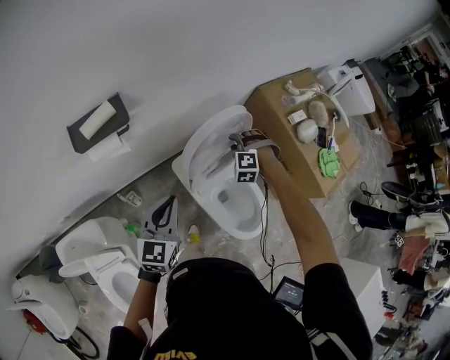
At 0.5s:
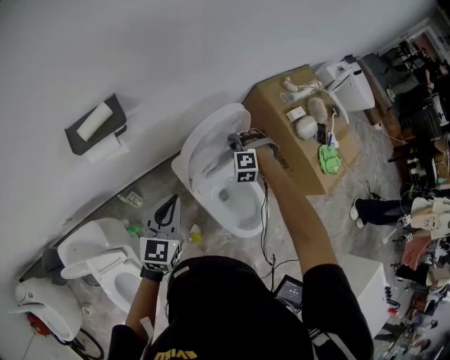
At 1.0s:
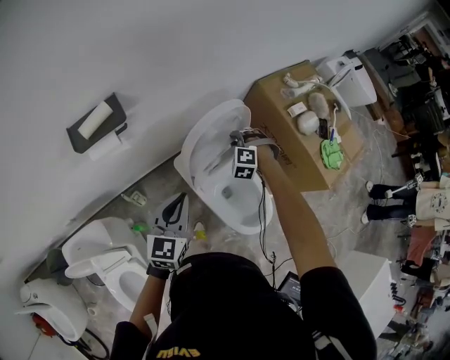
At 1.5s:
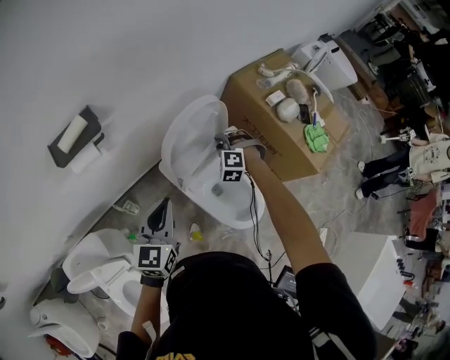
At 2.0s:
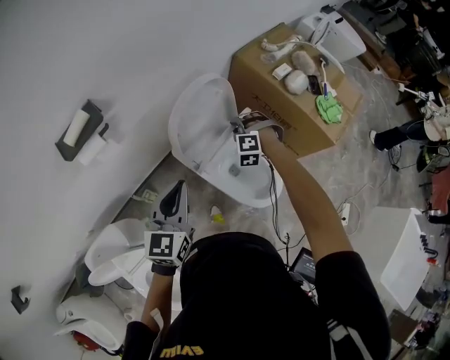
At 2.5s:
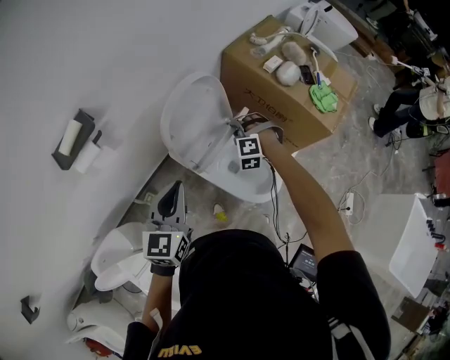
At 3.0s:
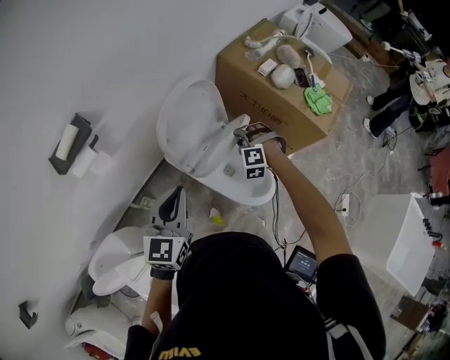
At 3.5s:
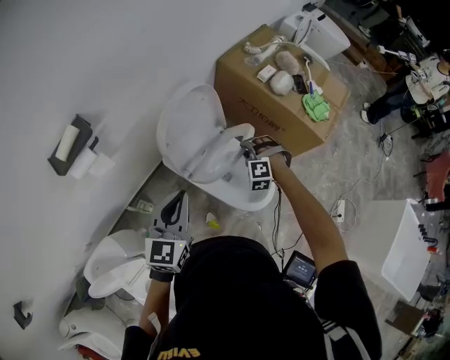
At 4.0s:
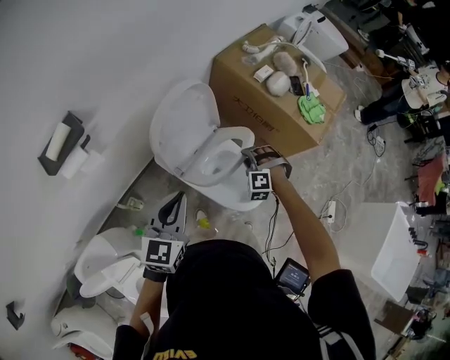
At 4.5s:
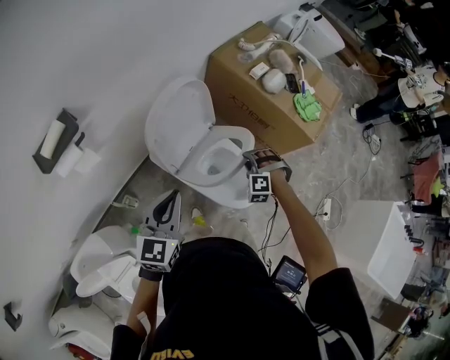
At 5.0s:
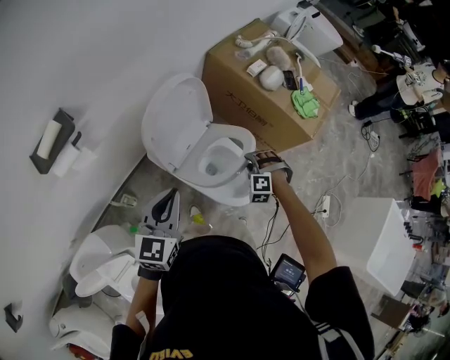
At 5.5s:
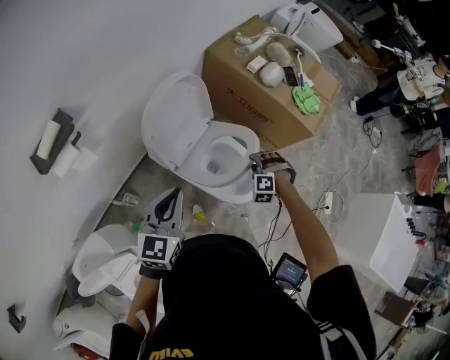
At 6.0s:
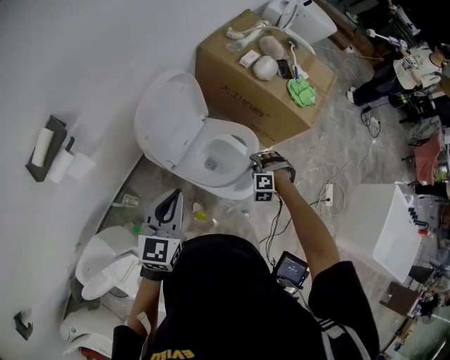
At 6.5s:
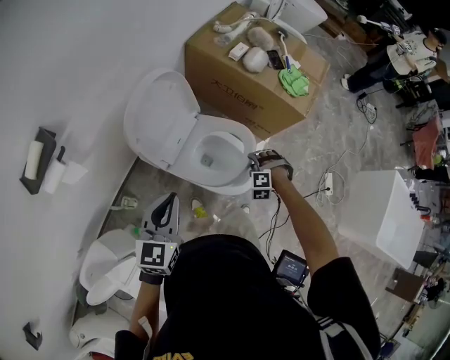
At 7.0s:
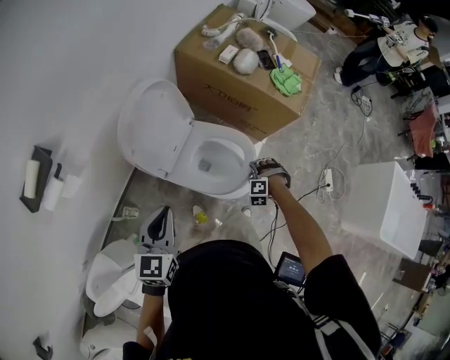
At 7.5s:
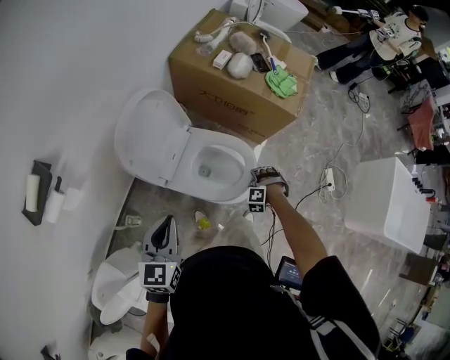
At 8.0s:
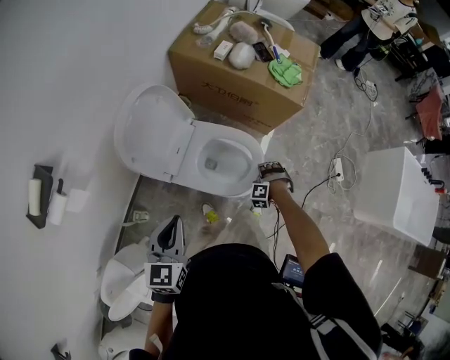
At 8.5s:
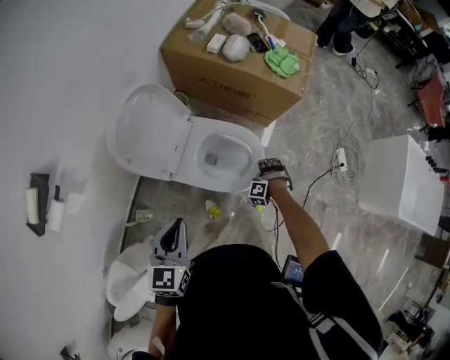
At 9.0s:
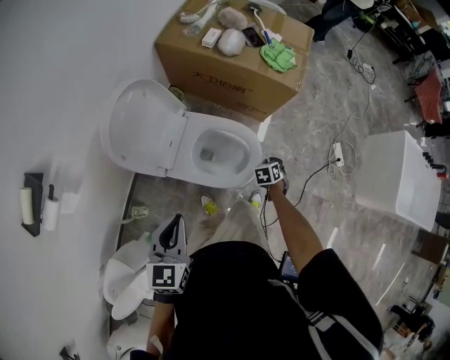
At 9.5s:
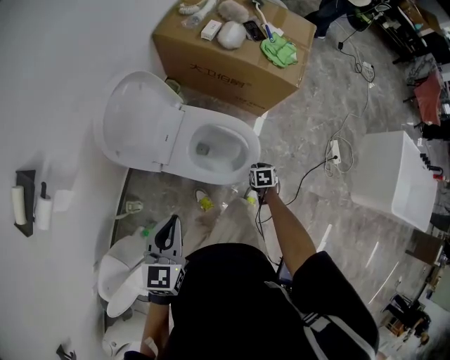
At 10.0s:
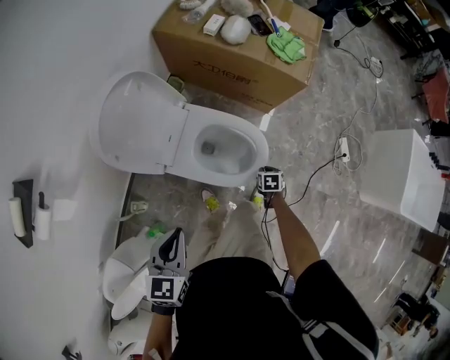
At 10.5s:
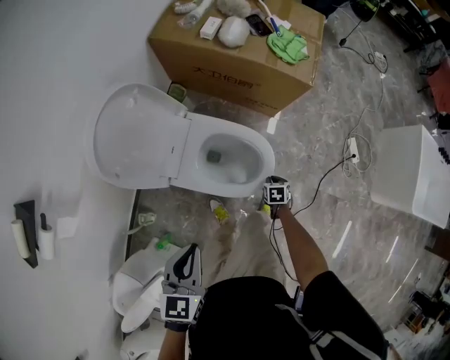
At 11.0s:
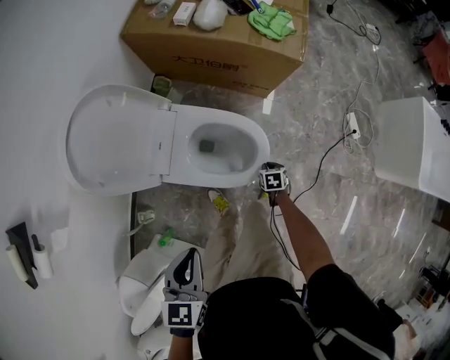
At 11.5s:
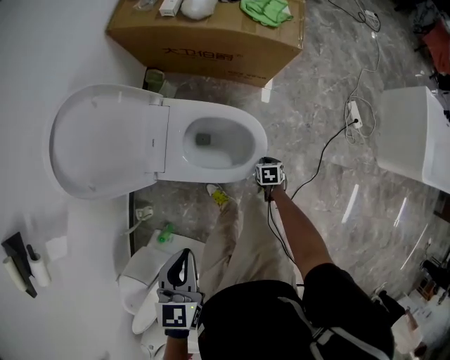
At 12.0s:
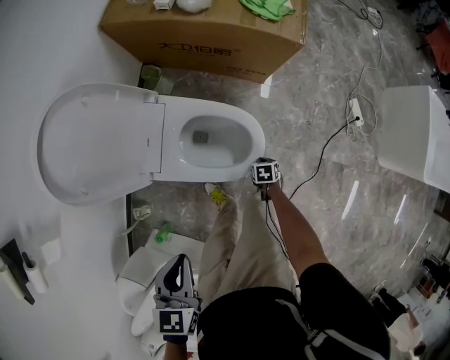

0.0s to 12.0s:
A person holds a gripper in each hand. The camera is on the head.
0.0s to 2.0s: The right gripper travels to the right and backward by about 10 cm. The left gripper travels to the right by some 5 cm.
2.0s to 4.0s: The right gripper moves to the right and backward, some 15 cm.
4.0s to 6.0s: The right gripper heads to the right and downward, covering some 10 cm.
6.0s to 8.0s: The right gripper is displaced downward and to the right by some 15 cm.
8.0s to 10.0s: The right gripper shifts some 10 cm downward and to the right, and twists roughly 100 degrees clockwise, seen from behind; the left gripper shifts by about 5 cm.
10.0s to 12.0s: The right gripper heads downward, covering about 15 cm, while the left gripper heads downward, covering some 5 cm.

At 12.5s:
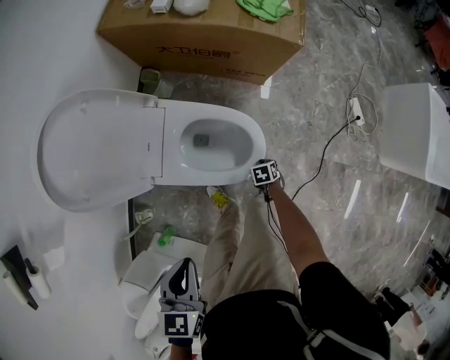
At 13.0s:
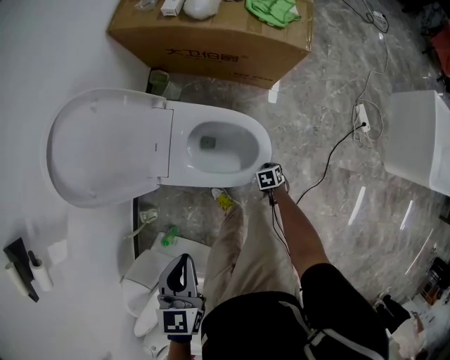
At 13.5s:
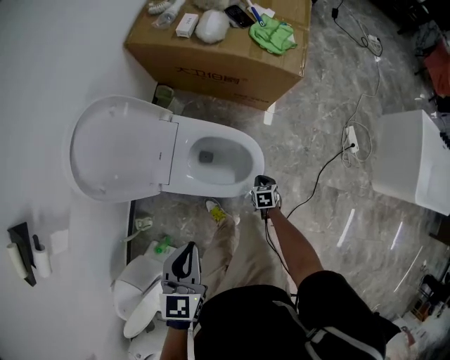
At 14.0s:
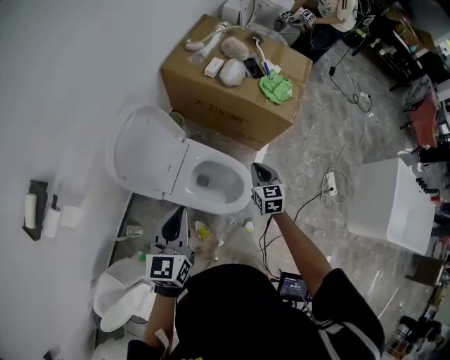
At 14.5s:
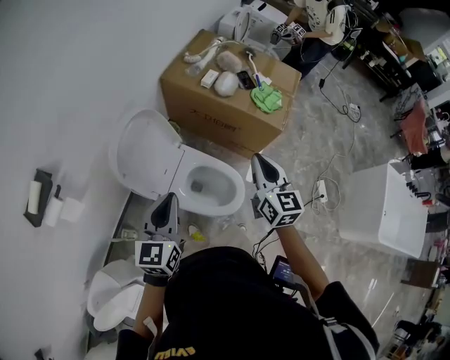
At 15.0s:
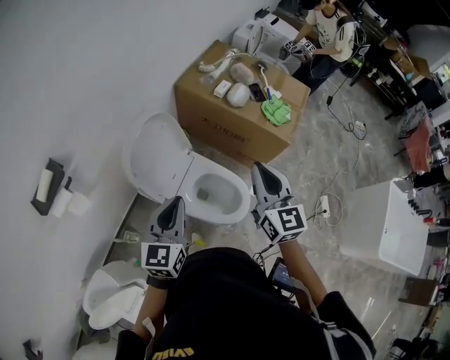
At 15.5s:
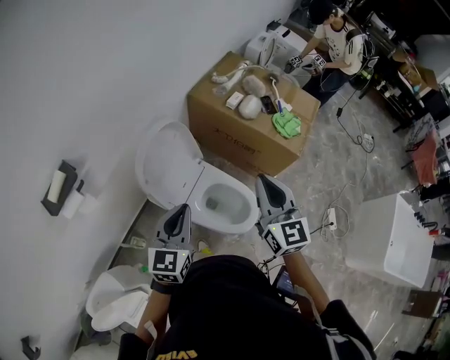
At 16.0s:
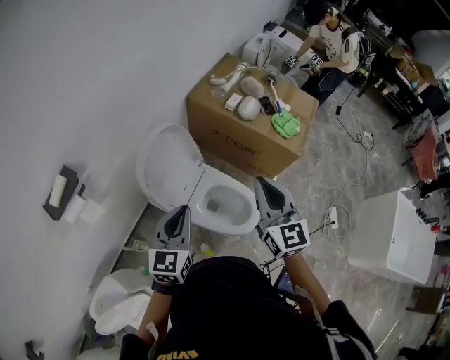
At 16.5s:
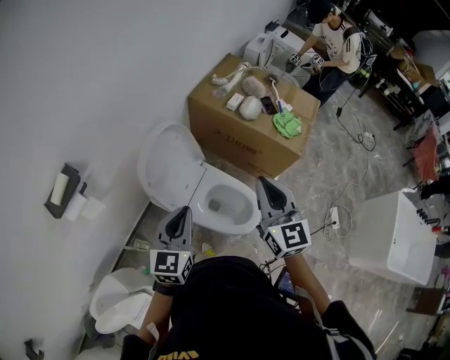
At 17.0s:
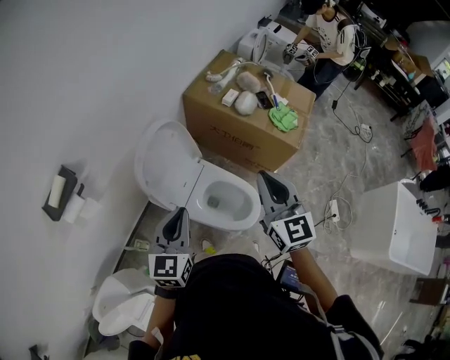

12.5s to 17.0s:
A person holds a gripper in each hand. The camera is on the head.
12.5s to 14.5s: The right gripper goes about 60 cm upward, and angles its fingers upward, by approximately 70 degrees. The left gripper heads upward, covering approximately 20 cm, and tilts its fingers approximately 30 degrees upward.
14.5s to 17.0s: The right gripper moves to the left and upward, approximately 10 cm.

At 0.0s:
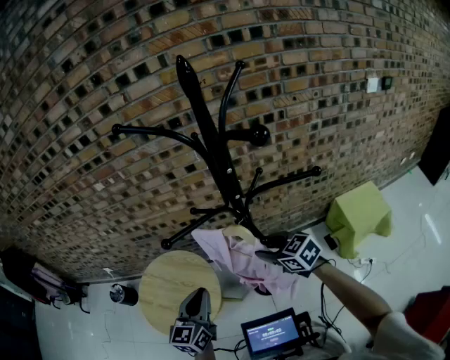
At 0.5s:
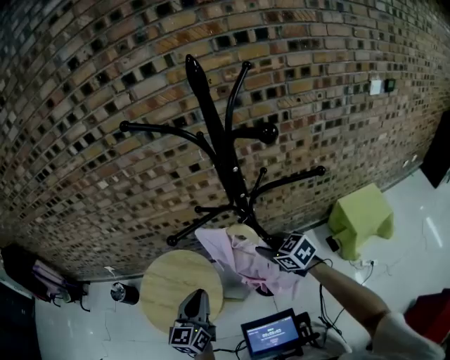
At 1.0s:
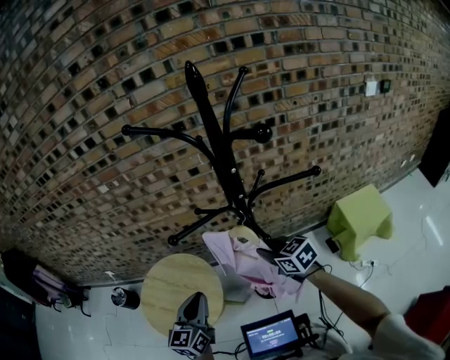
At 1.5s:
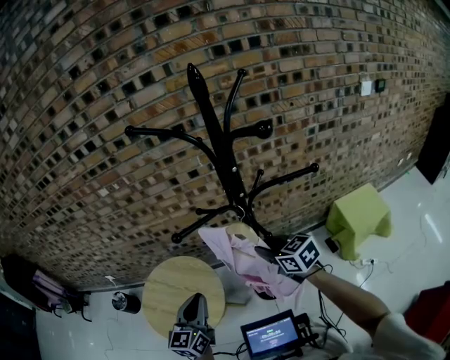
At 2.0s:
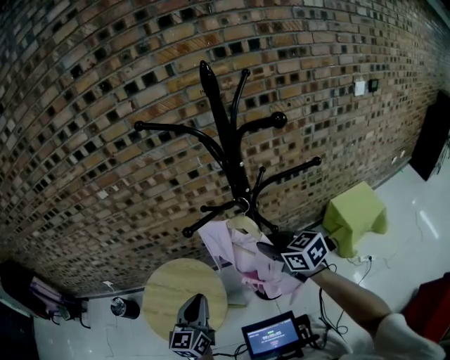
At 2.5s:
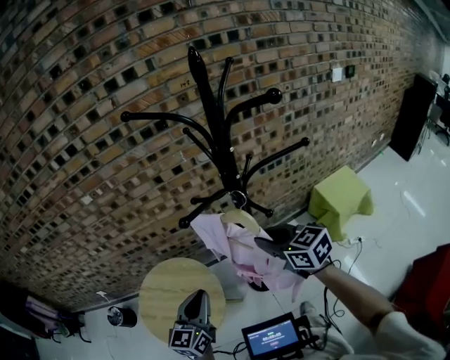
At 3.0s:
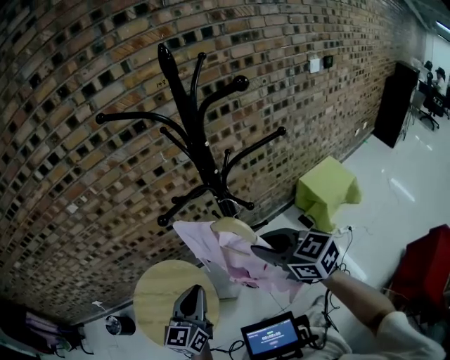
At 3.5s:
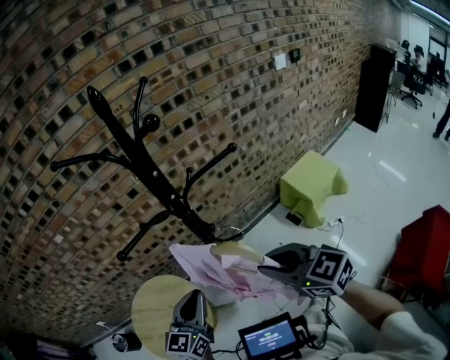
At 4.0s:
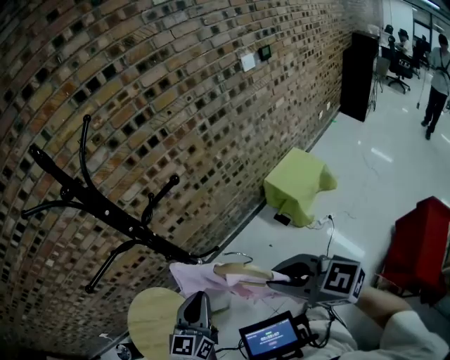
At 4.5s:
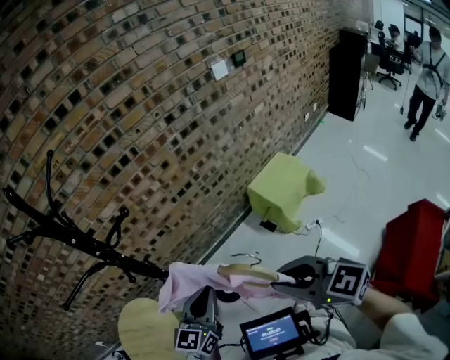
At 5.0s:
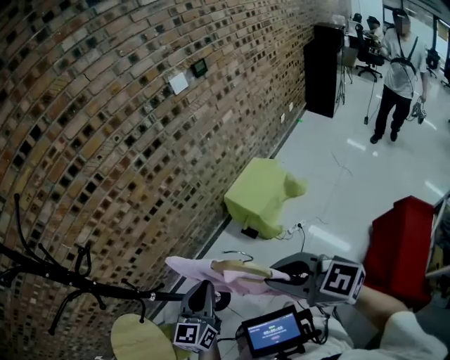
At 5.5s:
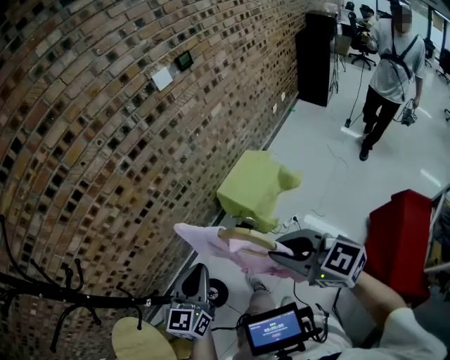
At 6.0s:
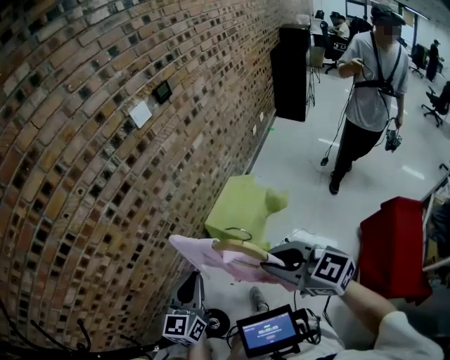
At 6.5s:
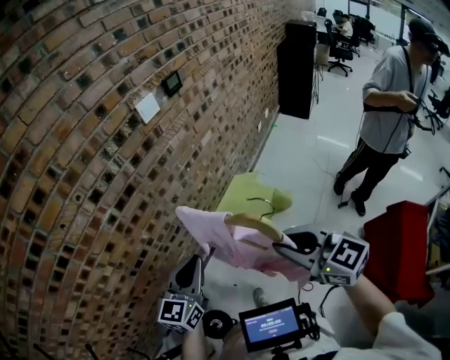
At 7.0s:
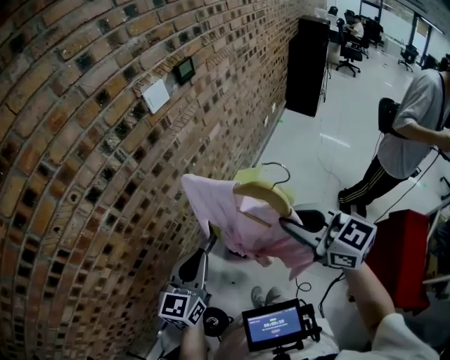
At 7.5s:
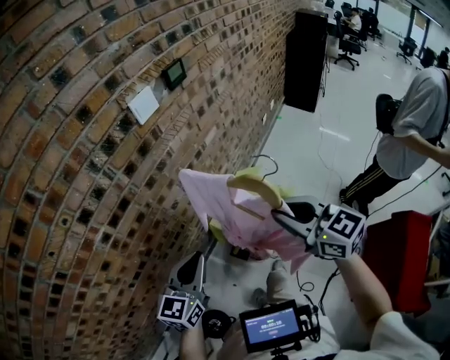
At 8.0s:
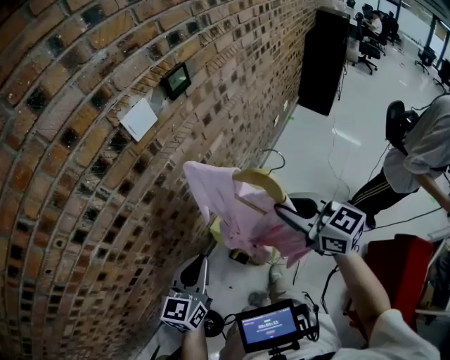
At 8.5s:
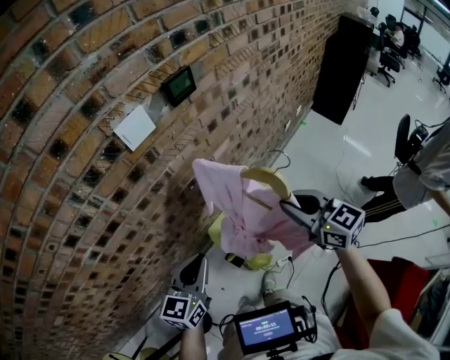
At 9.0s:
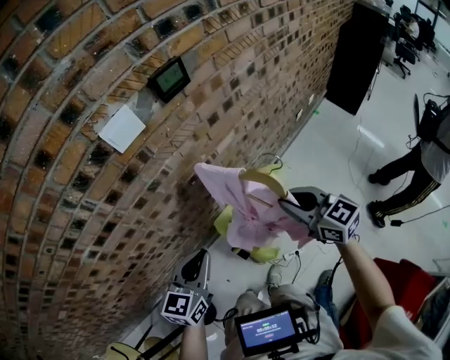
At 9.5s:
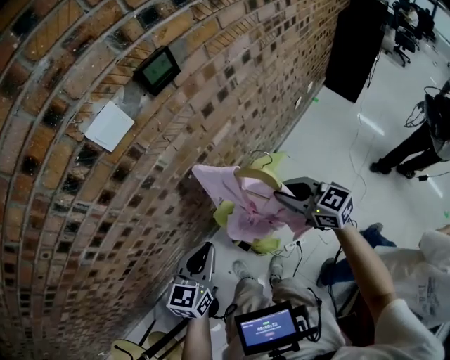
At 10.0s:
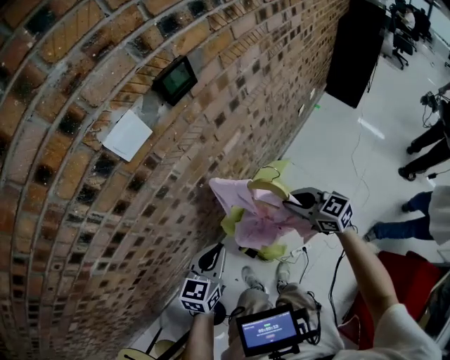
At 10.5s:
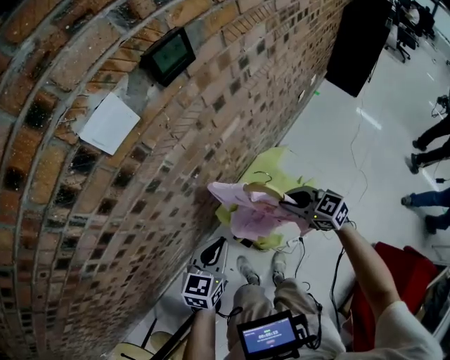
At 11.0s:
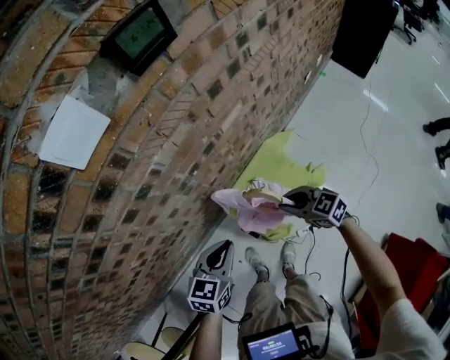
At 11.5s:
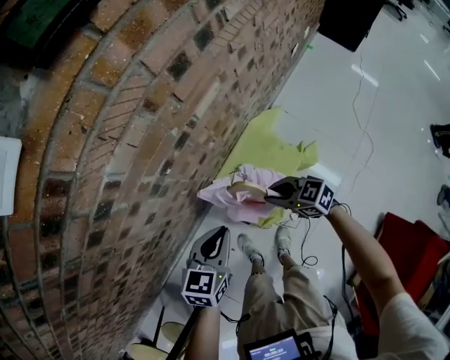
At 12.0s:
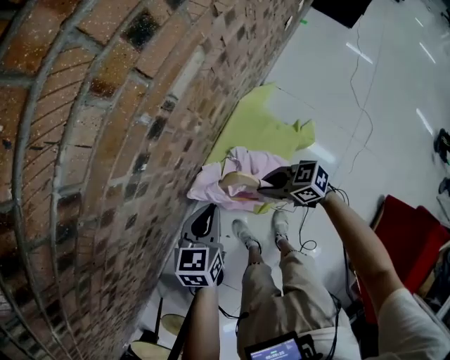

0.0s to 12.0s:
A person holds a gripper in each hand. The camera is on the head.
0.0s to 2.0s: The right gripper shifts roughly 10 cm upward, and closes its fingers. The left gripper is displaced to the left by about 5 cm.
2.0s to 4.0s: The right gripper heads backward and to the right, covering some 30 cm. Meanwhile the left gripper travels to the right by roughly 30 cm, and swivels about 30 degrees.
4.0s to 6.0s: Both grippers are carried to the right and forward, some 50 cm. The right gripper changes its angle by approximately 30 degrees. The left gripper rotates roughly 20 degrees.
6.0s to 8.0s: The two grippers go some 40 cm forward.
8.0s to 10.0s: The left gripper travels forward, downward and to the right by about 20 cm. Meanwhile the right gripper moves downward, forward and to the right, approximately 25 cm.
10.0s to 12.0s: The left gripper goes about 35 cm downward and forward. Meanwhile the right gripper shifts some 40 cm downward, and turns by some 30 degrees.
